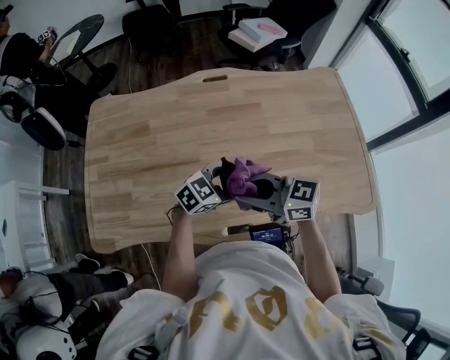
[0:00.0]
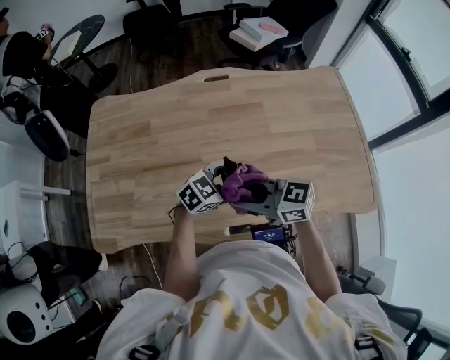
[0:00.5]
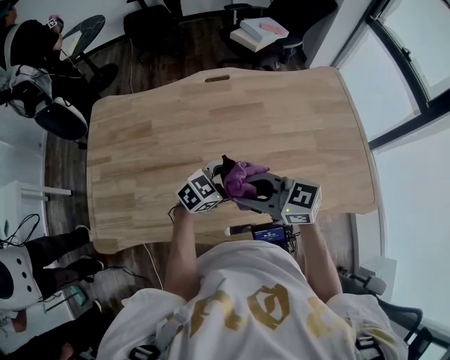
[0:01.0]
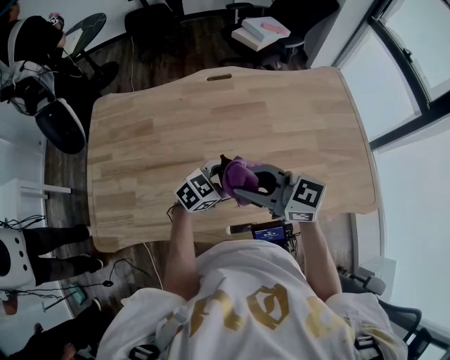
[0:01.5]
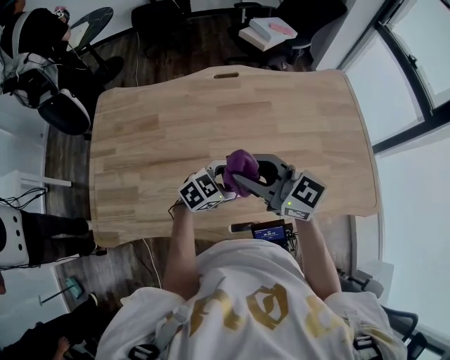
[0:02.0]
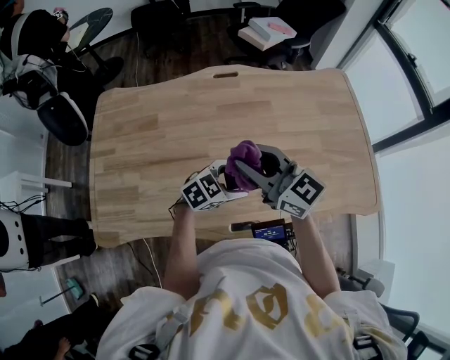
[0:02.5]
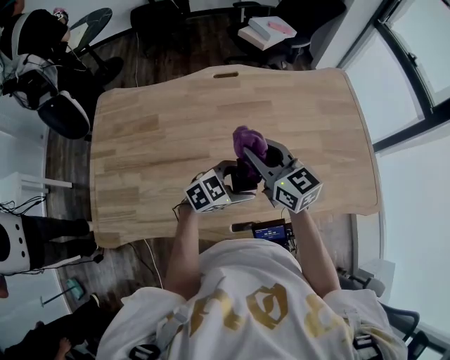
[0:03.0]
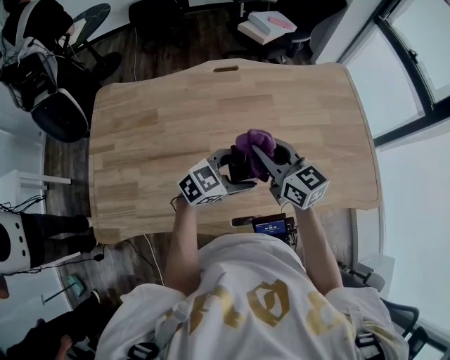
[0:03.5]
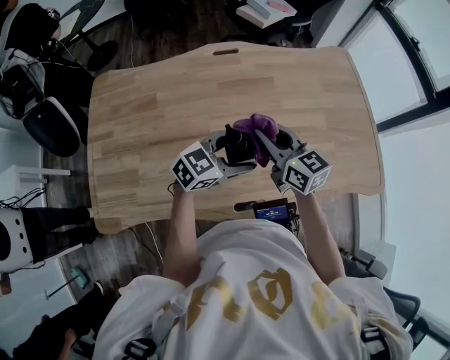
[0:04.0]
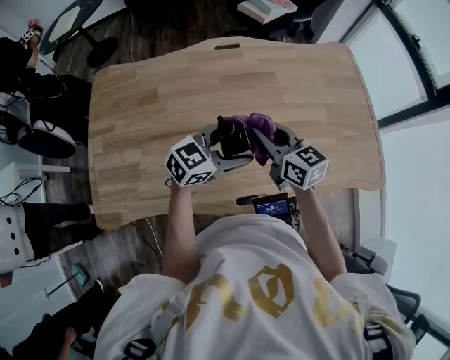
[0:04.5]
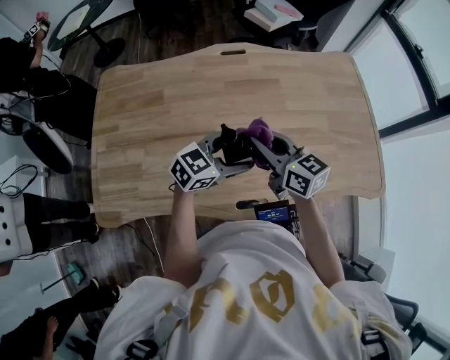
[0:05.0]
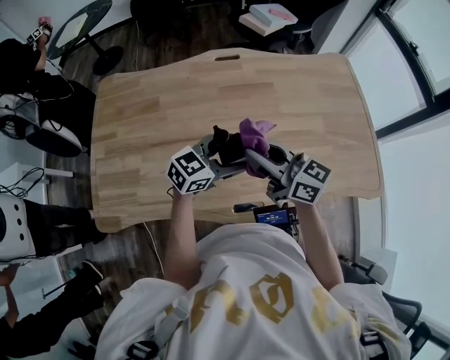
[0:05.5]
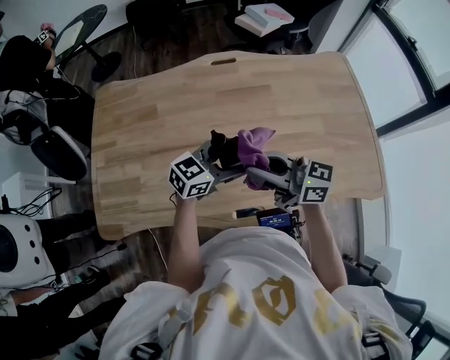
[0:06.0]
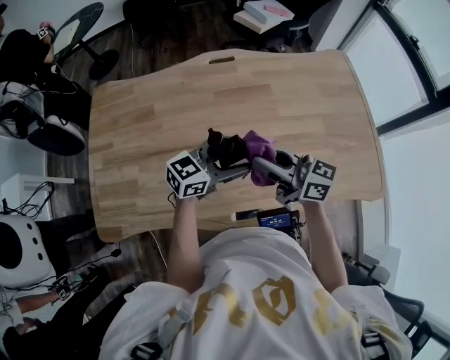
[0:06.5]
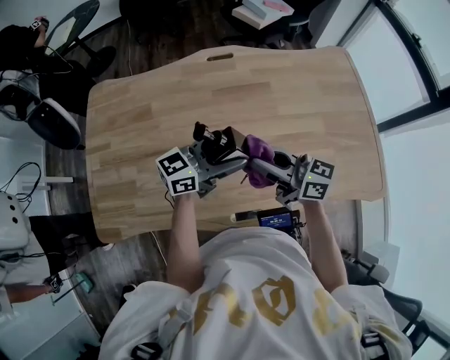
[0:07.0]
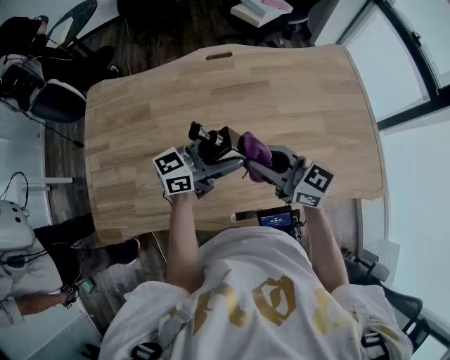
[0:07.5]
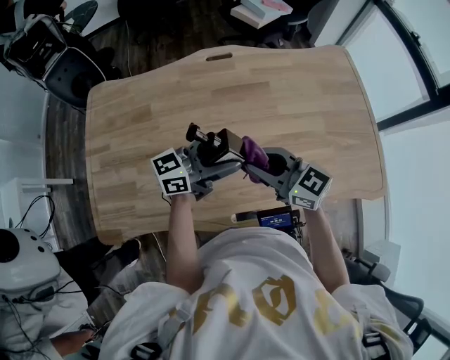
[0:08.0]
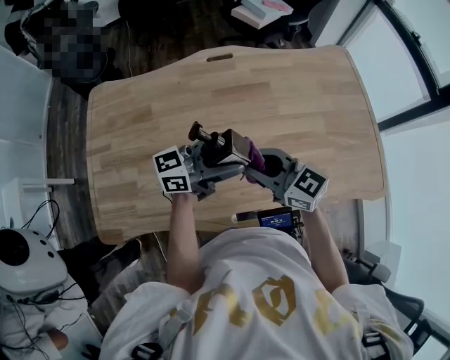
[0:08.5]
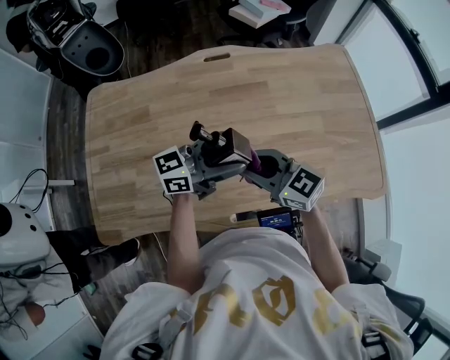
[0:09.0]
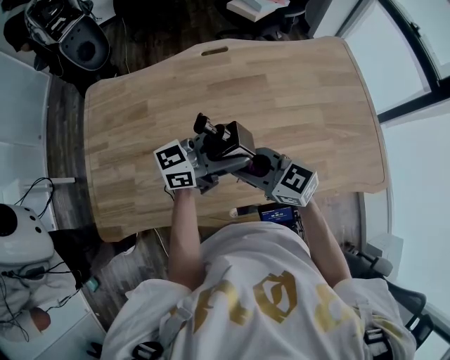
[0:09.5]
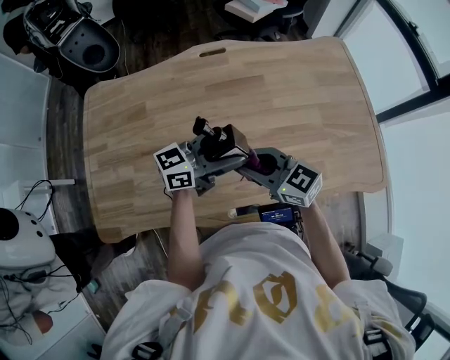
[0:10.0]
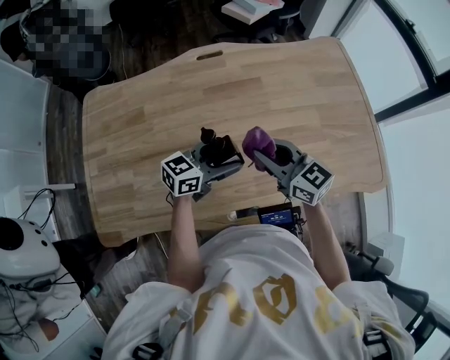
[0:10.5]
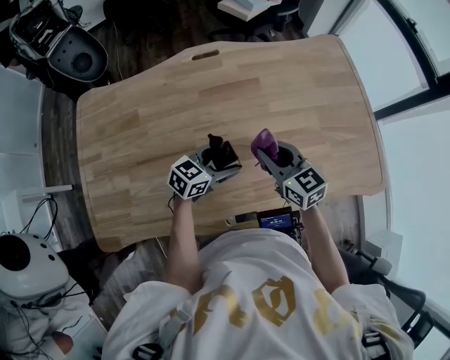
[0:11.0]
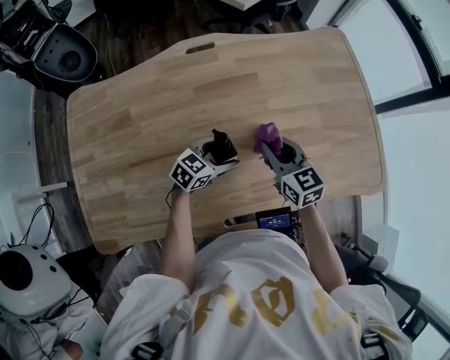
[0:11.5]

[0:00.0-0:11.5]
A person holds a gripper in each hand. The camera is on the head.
0:00.0 to 0:02.0: The right gripper moves upward, about 5 cm, and rotates about 20 degrees.
0:02.0 to 0:04.0: The right gripper changes place by approximately 10 cm, and swivels about 30 degrees. Meanwhile the left gripper is displaced upward by roughly 5 cm.
0:04.0 to 0:06.0: The right gripper shifts by roughly 10 cm, and turns by some 40 degrees.
0:06.0 to 0:07.5: The left gripper moves some 5 cm, and turns by approximately 20 degrees. The right gripper changes place by roughly 5 cm.
0:07.5 to 0:09.5: The right gripper shifts by approximately 5 cm.
0:09.5 to 0:11.5: The right gripper moves approximately 20 cm, and swivels roughly 40 degrees. The left gripper shifts some 20 cm downward, and tilts its fingers some 40 degrees downward.

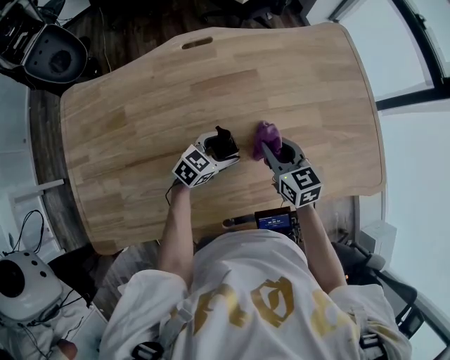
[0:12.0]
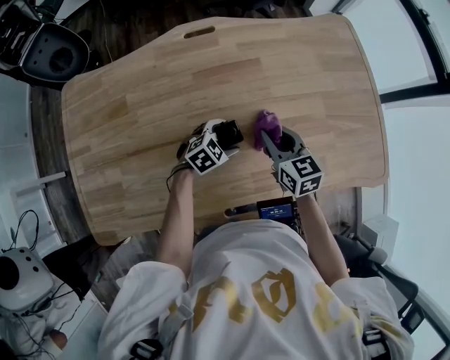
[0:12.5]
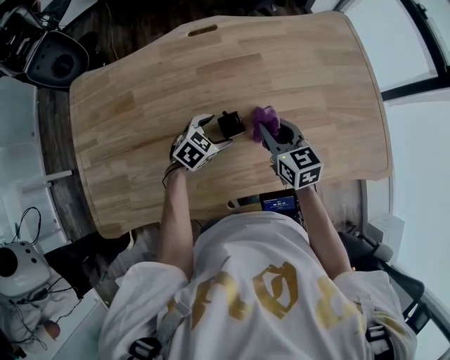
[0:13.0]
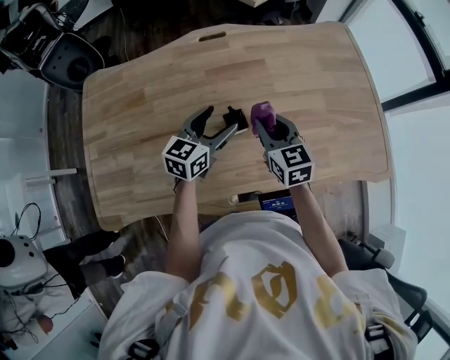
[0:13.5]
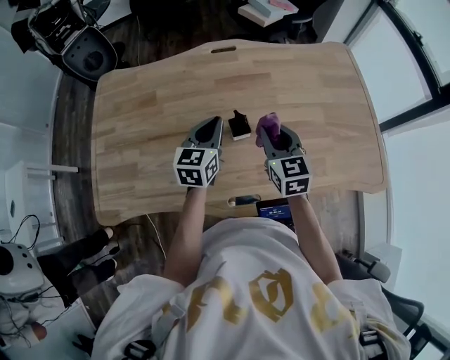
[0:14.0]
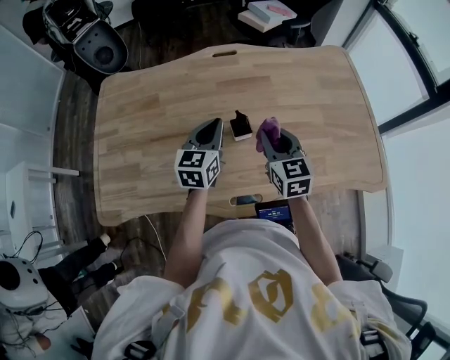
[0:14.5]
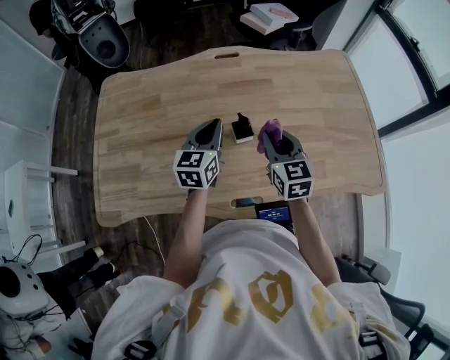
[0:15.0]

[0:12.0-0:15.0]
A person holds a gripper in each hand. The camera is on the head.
0:12.0 to 0:13.5: The right gripper moves upward, some 5 cm. The left gripper moves upward, roughly 15 cm, and rotates some 30 degrees.
0:13.5 to 0:15.0: The right gripper moves roughly 5 cm. The left gripper shifts by roughly 5 cm, turns by some 20 degrees, and closes.

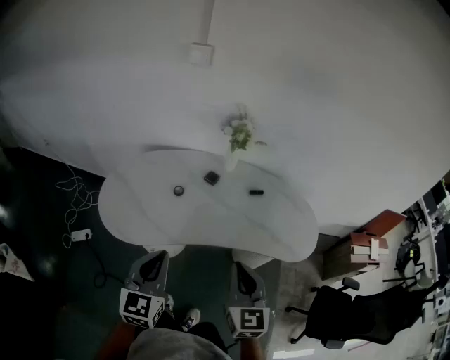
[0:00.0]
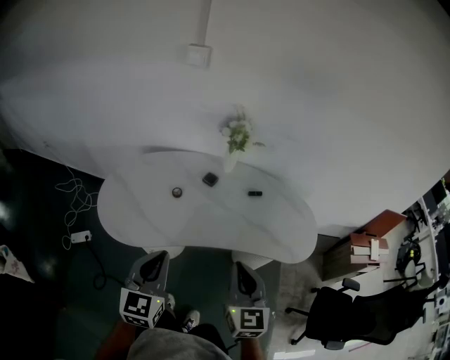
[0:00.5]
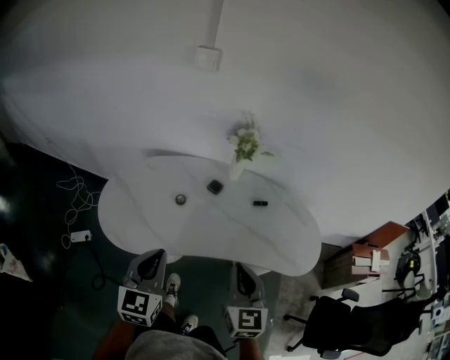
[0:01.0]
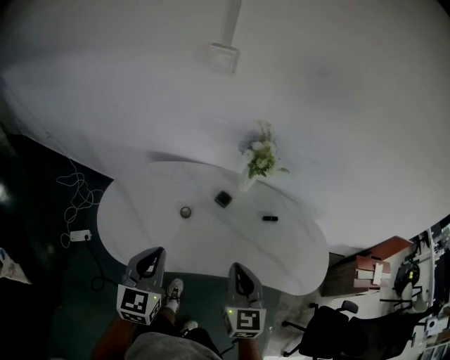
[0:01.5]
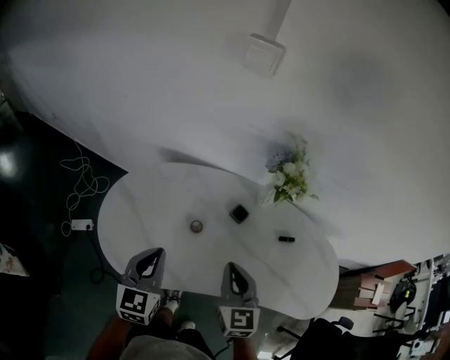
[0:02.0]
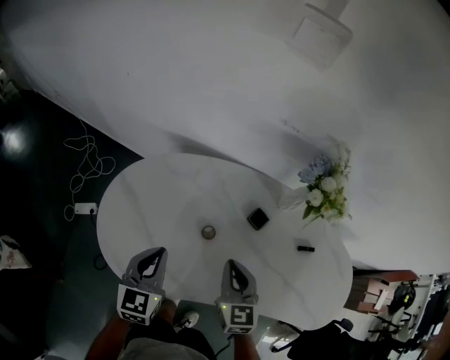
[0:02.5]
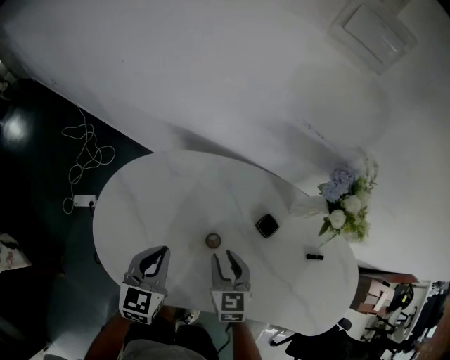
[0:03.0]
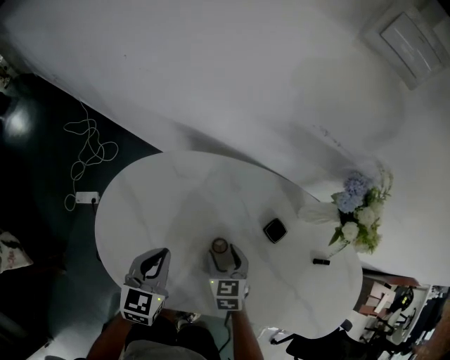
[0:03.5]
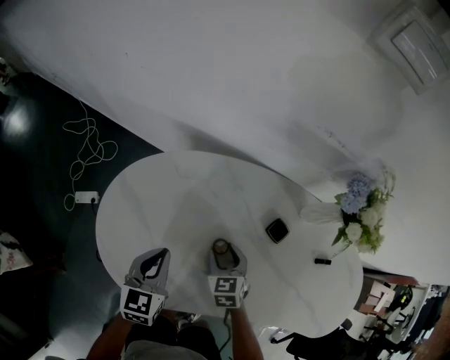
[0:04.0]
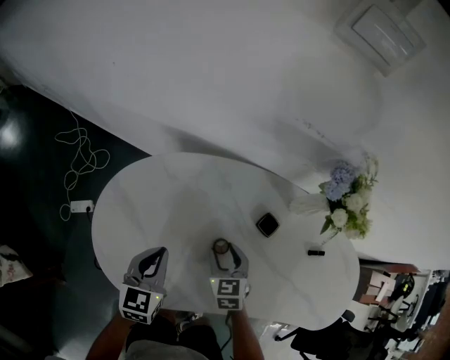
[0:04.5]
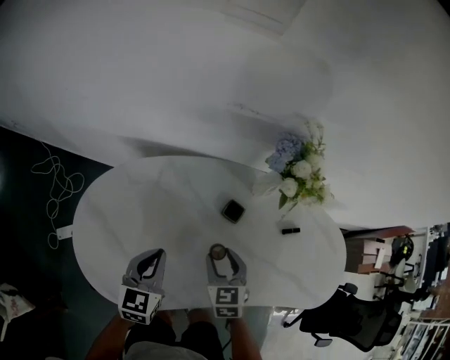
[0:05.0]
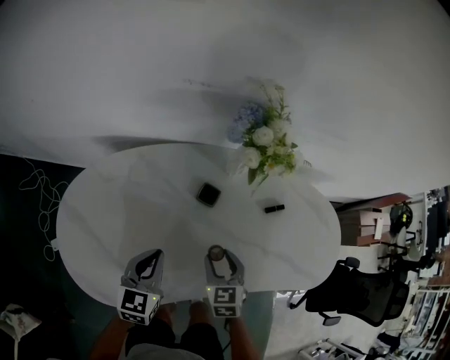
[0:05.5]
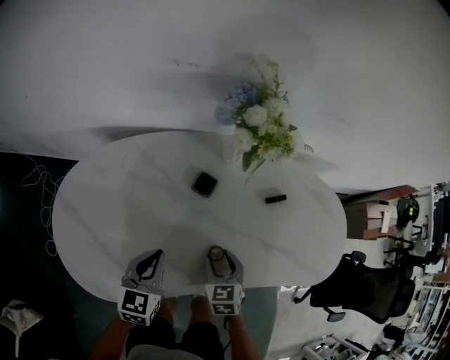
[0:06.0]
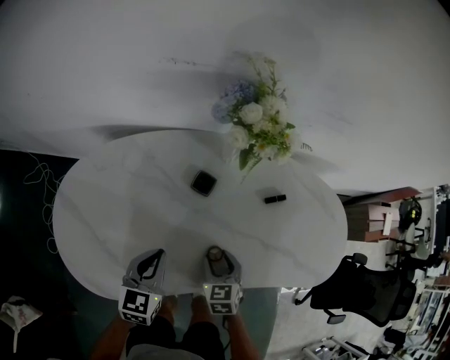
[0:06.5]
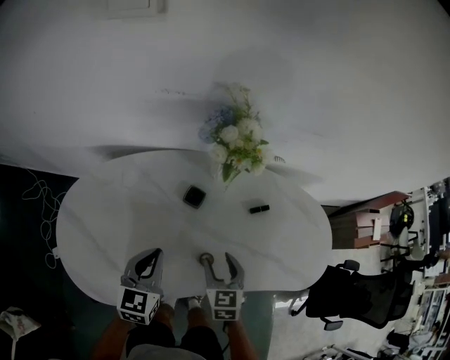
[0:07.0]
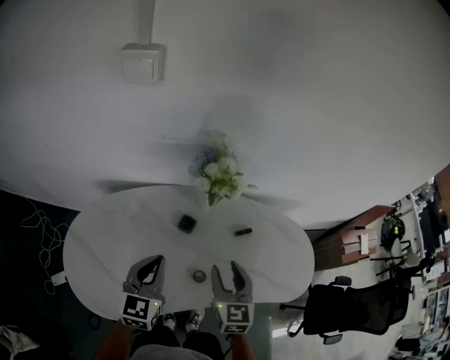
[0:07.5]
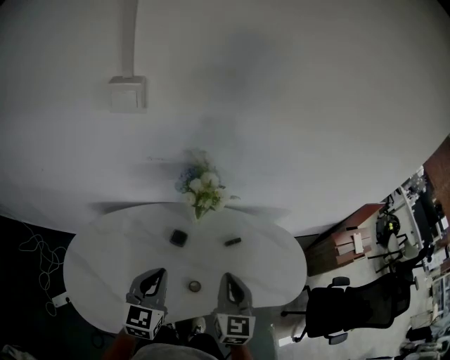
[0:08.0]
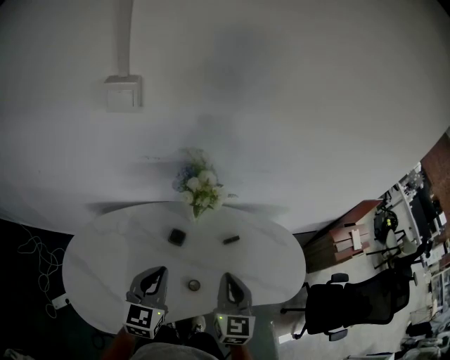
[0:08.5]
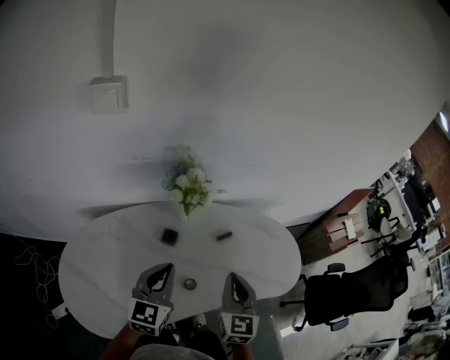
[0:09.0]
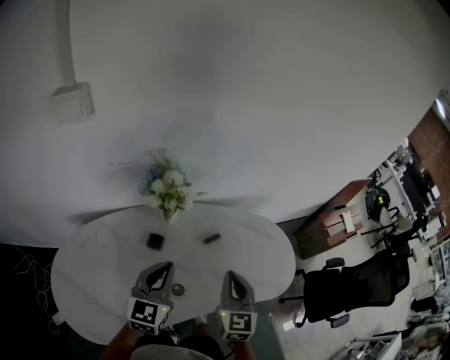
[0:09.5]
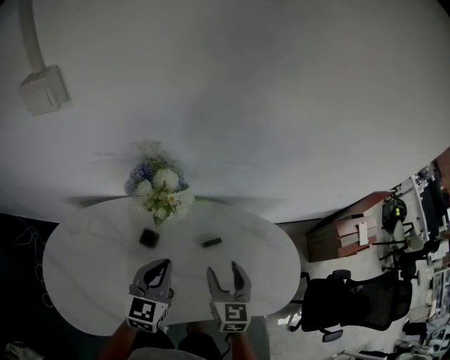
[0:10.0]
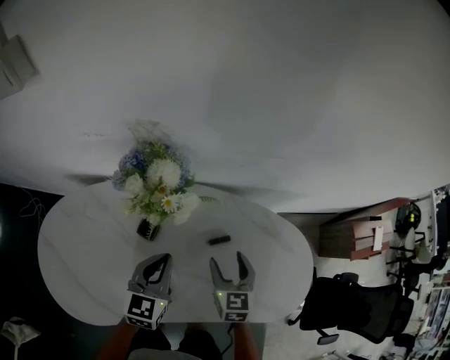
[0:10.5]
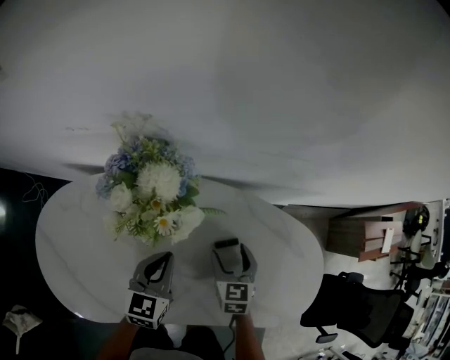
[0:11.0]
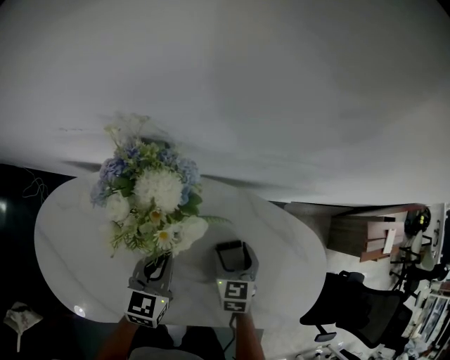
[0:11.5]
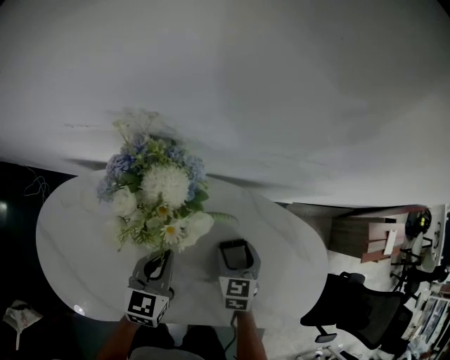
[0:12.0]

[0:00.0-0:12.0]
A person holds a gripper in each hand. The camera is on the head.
0:00.0 to 0:02.0: Both grippers move forward and to the left, some 25 cm.
0:02.0 to 0:04.0: The left gripper heads downward, forward and to the left, covering roughly 20 cm, while the right gripper shifts roughly 30 cm downward, forward and to the left, angles its fingers downward, by some 30 degrees, and opens up.
0:04.0 to 0:06.0: The right gripper travels to the right and backward by about 20 cm, and rotates roughly 20 degrees; the left gripper goes roughly 20 cm to the right, and swivels roughly 20 degrees.
0:06.0 to 0:08.0: The left gripper travels upward by roughly 20 cm, and swivels about 20 degrees; the right gripper goes some 30 cm upward, tips its fingers upward by roughly 30 degrees, and closes.
0:08.0 to 0:10.0: The left gripper goes approximately 20 cm forward, to the right and downward, while the right gripper travels forward, downward and to the right by some 20 cm, and opens up.
0:10.0 to 0:12.0: The left gripper moves downward, roughly 15 cm. Meanwhile the right gripper travels downward and forward by about 20 cm, and changes its angle by approximately 20 degrees.
